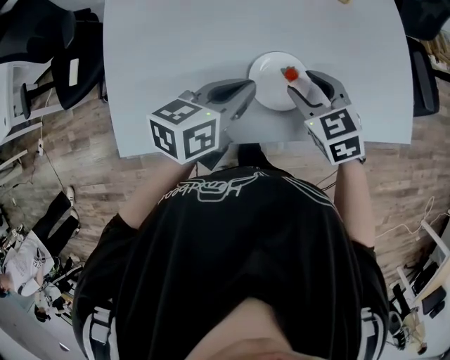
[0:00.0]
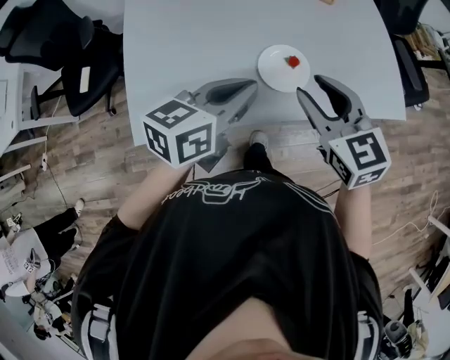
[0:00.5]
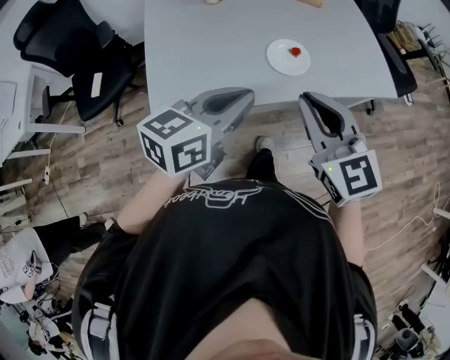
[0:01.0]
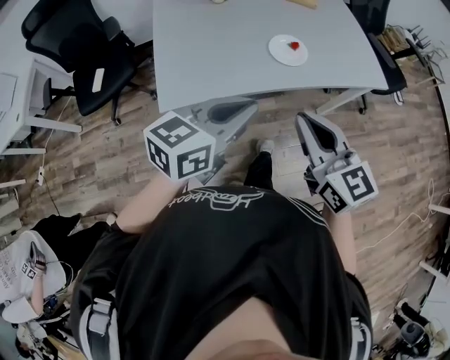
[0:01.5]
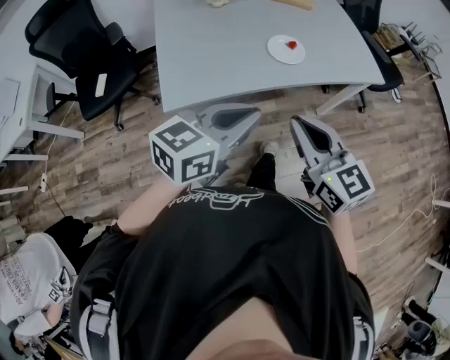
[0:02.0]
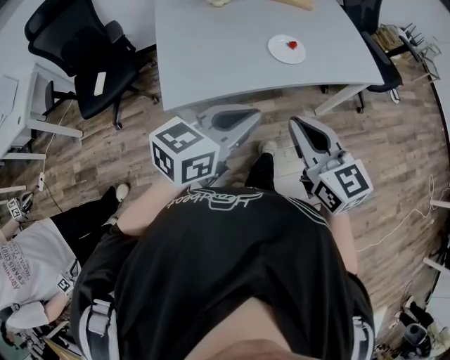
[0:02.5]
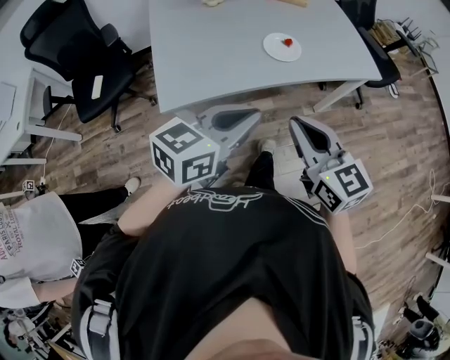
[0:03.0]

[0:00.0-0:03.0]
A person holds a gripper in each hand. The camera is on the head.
0:00.0 to 0:01.5: The two grippers go roughly 40 cm backward and upward. The left gripper rotates approximately 20 degrees; the right gripper points its fingers roughly 30 degrees further upward, and closes its fingers.
0:01.5 to 0:03.0: The grippers move only a little.

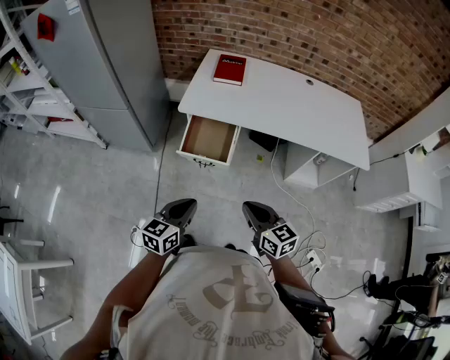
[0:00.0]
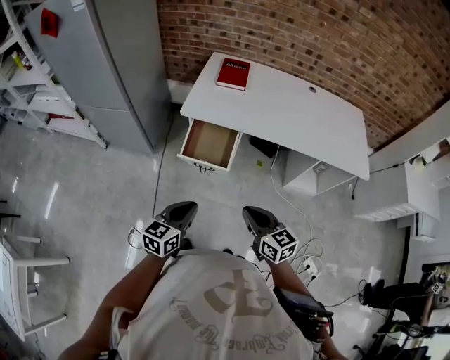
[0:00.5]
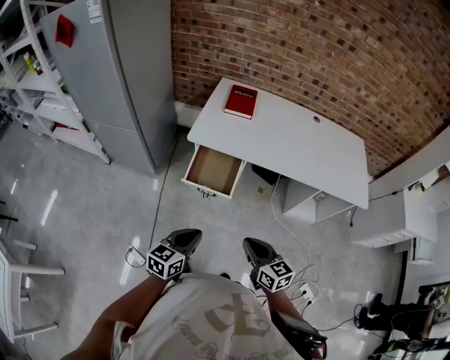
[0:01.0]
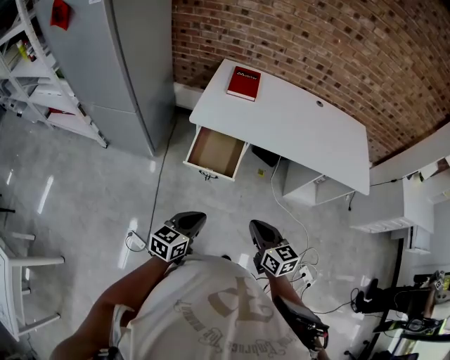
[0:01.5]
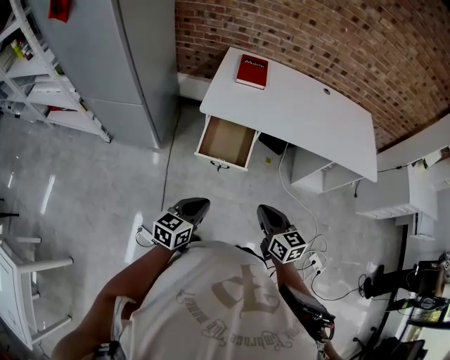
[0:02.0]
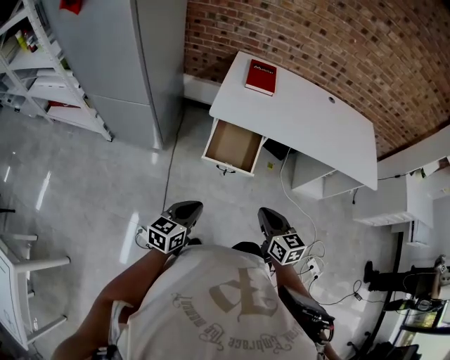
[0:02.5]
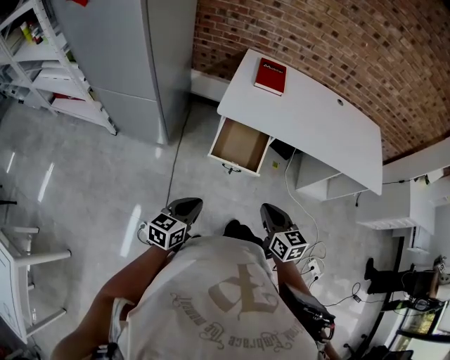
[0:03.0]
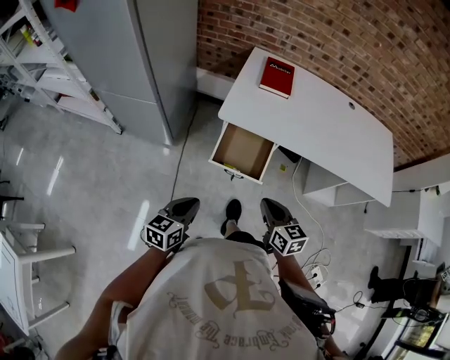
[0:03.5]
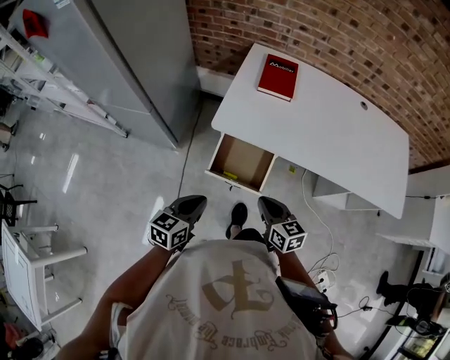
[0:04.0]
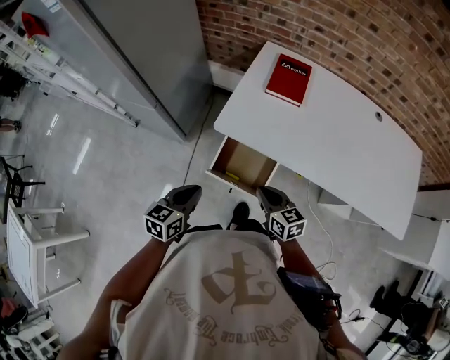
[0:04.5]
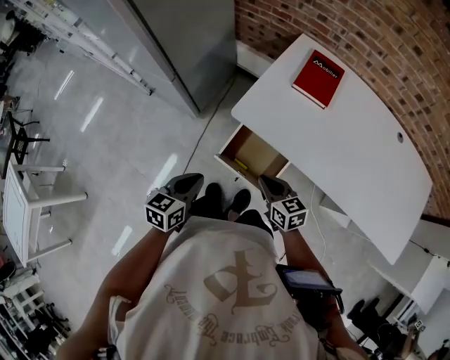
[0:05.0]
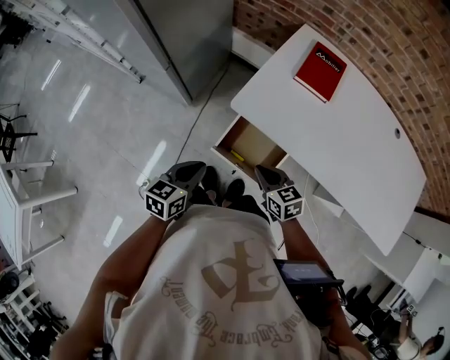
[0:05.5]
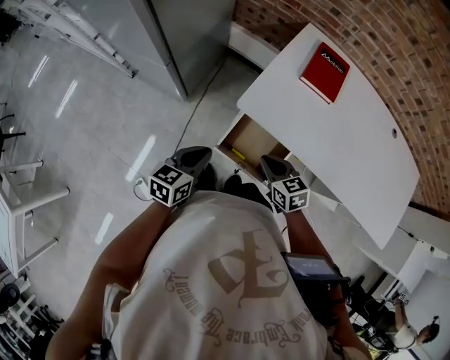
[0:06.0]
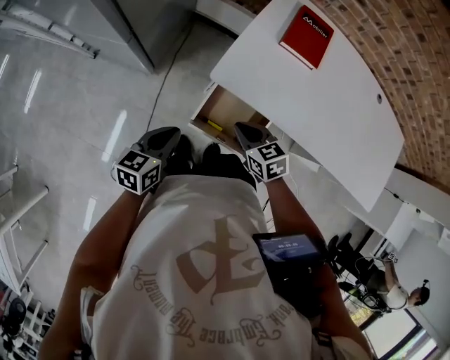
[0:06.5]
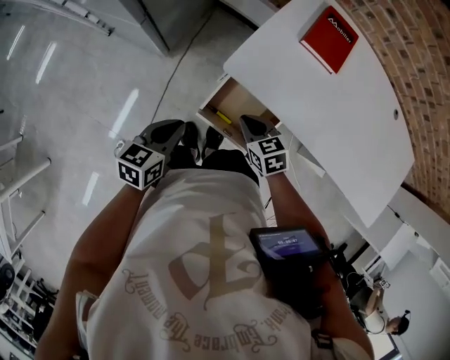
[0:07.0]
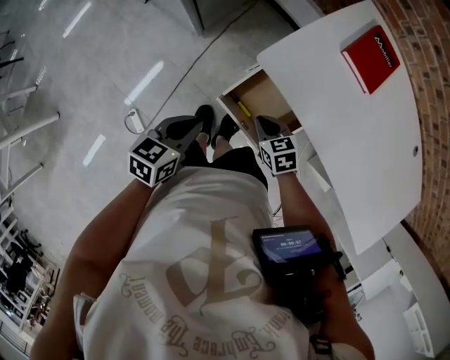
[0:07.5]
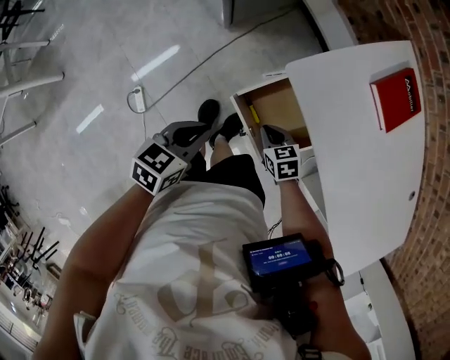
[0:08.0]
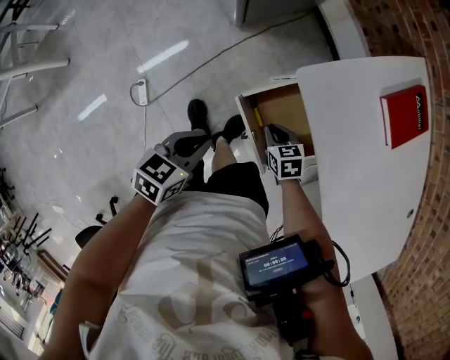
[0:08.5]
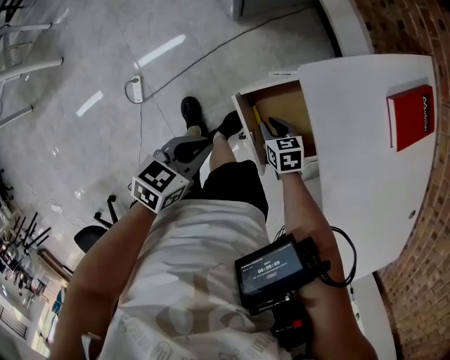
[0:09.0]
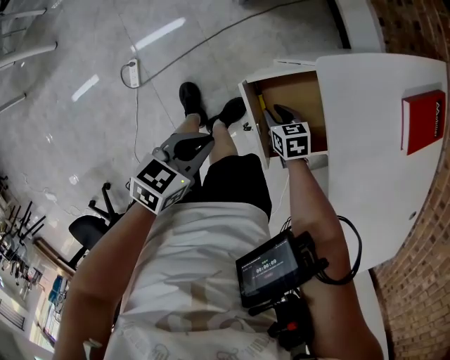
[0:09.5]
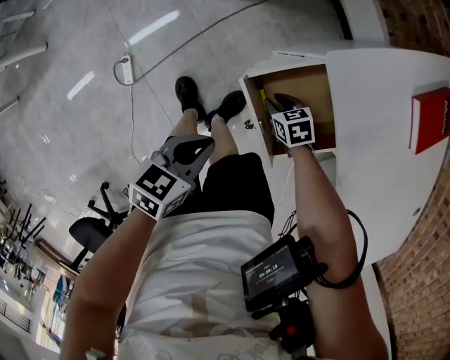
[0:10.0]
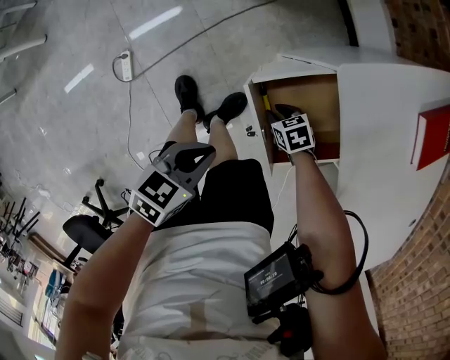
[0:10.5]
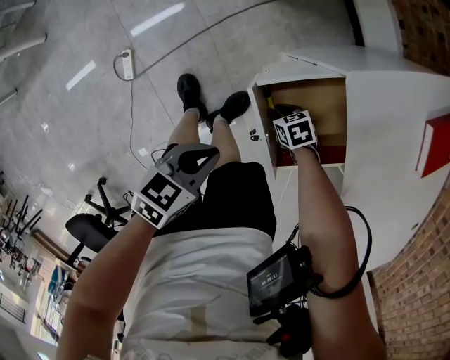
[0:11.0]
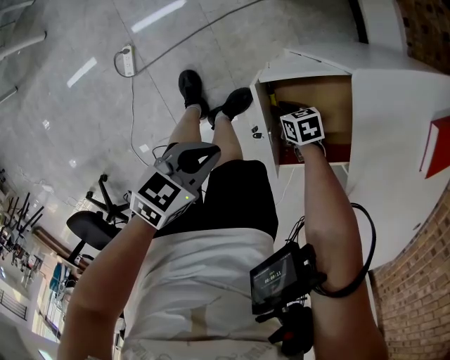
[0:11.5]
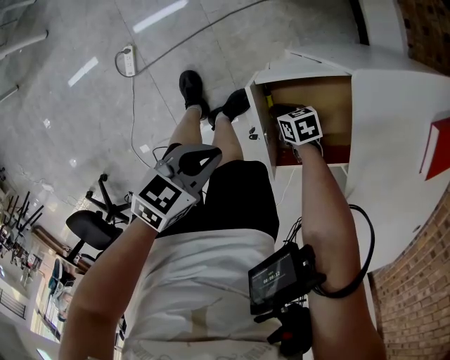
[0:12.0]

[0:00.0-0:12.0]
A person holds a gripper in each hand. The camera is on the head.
0:00.0 to 0:02.0: Both grippers travel together to the left, roughly 5 cm.
0:02.0 to 0:04.0: Both grippers travel together forward, approximately 20 cm.
0:04.0 to 0:06.0: The two grippers go some 15 cm forward. The right gripper changes its angle by approximately 30 degrees.
0:06.0 to 0:08.0: The right gripper is displaced downward by some 20 cm, and changes its angle by about 30 degrees. The left gripper heads downward and backward, covering about 10 cm.
0:08.0 to 0:10.0: The grippers both shift downward by about 10 cm. The right gripper opens up.
0:10.0 to 0:12.0: The right gripper shifts roughly 5 cm downward.

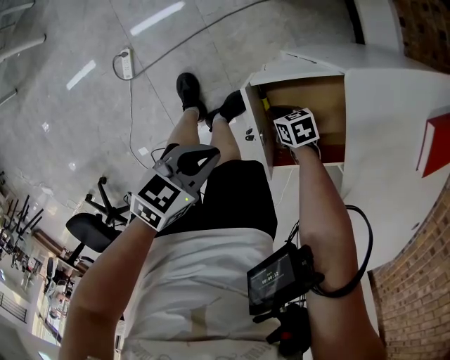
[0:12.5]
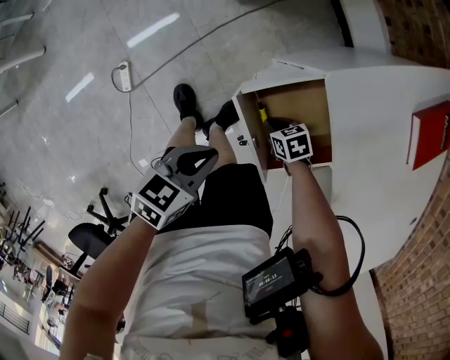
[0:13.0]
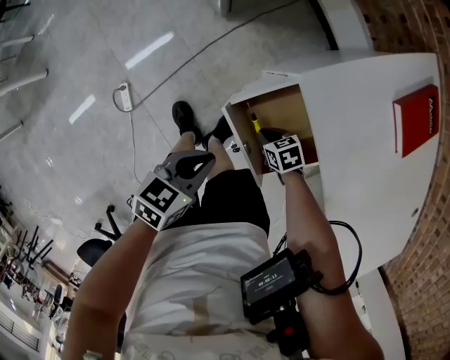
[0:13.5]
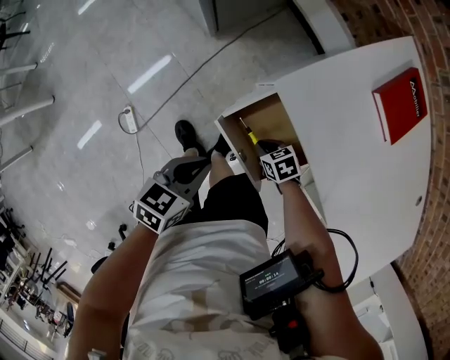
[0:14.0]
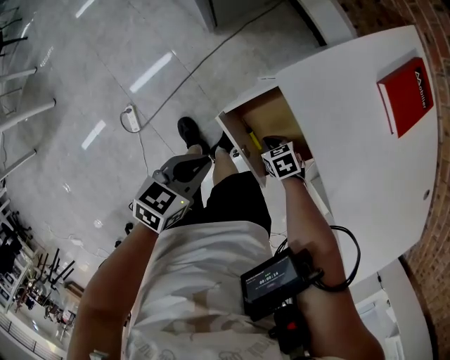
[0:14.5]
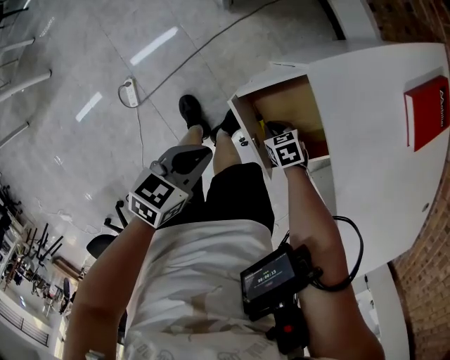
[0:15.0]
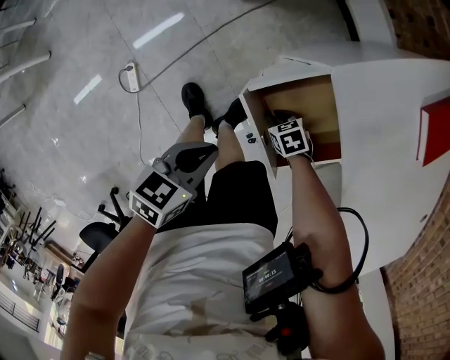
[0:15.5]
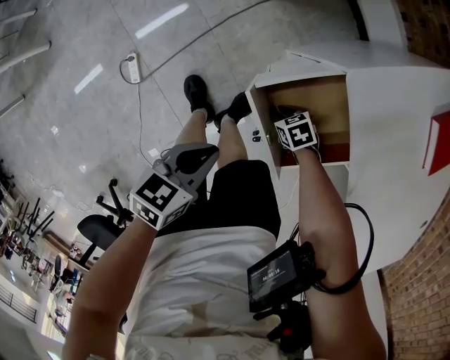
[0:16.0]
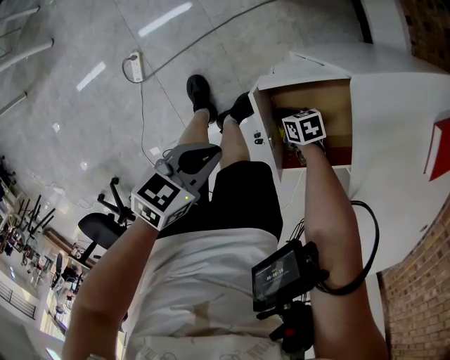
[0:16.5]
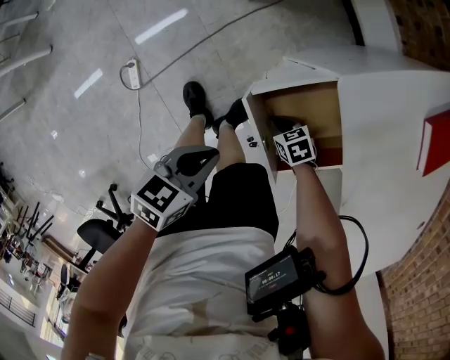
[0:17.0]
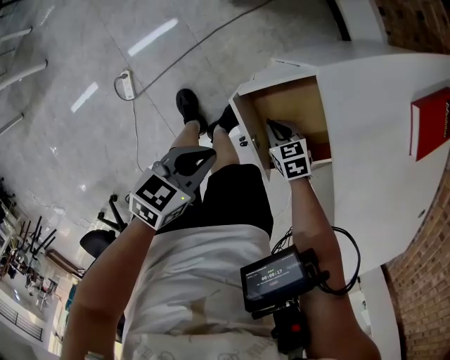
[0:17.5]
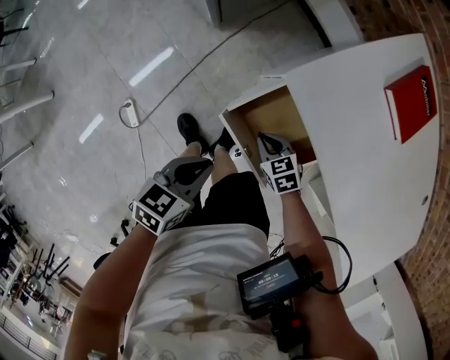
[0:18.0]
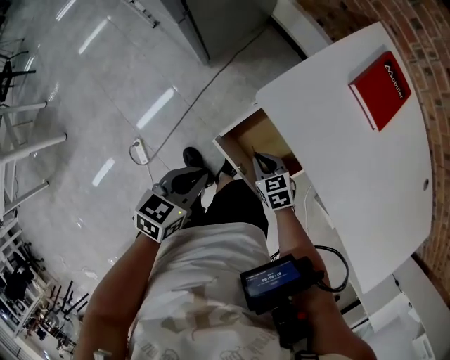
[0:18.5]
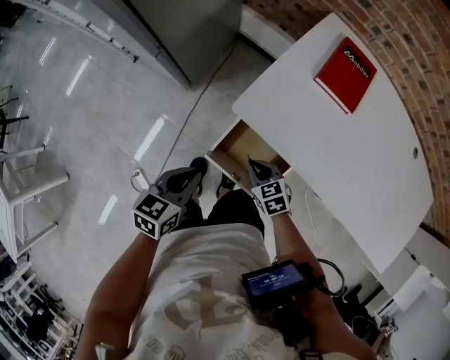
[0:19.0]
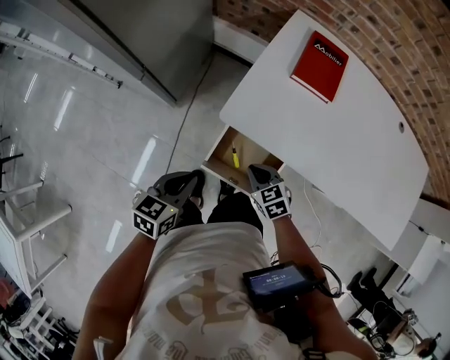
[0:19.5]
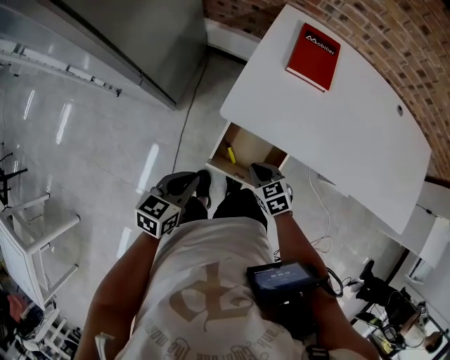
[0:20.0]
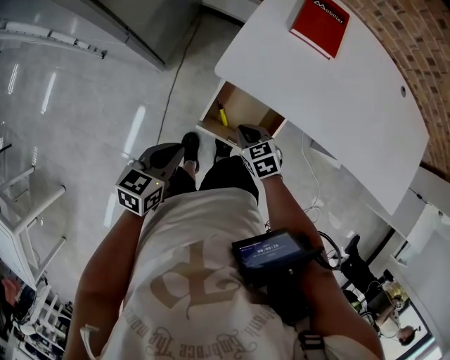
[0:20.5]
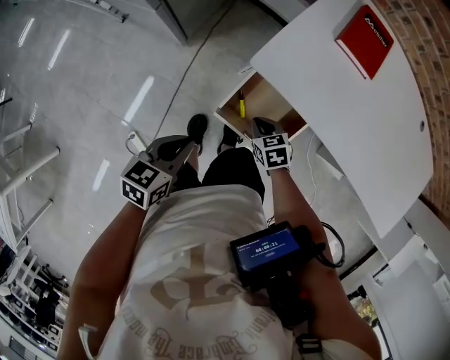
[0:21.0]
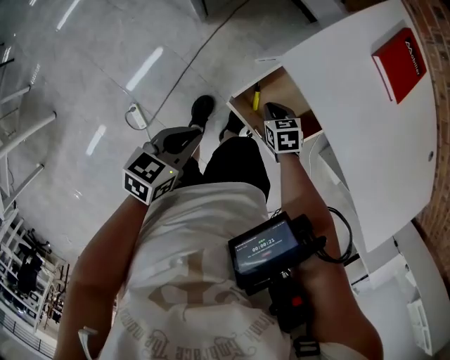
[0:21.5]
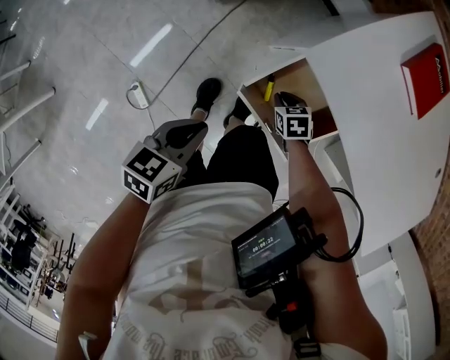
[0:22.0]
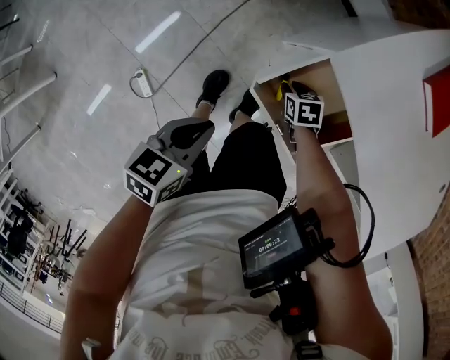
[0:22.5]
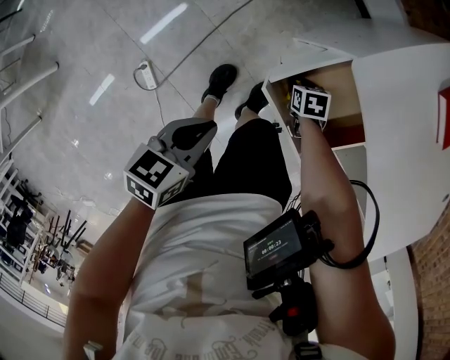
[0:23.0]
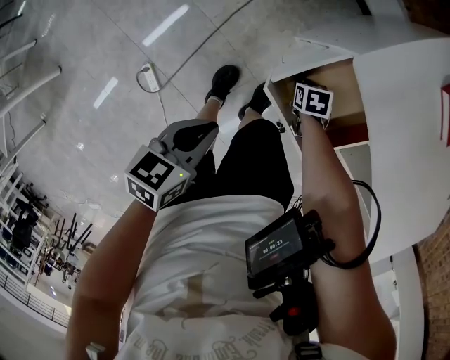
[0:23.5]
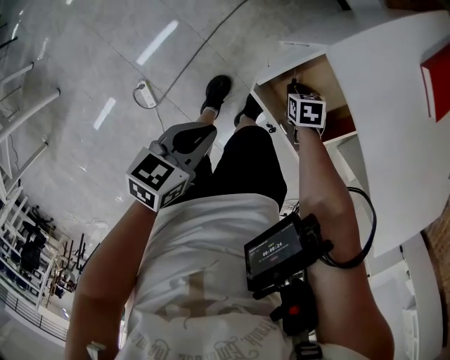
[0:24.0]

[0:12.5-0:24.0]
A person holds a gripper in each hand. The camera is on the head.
0:12.5 to 0:14.5: The grippers both shift upward by about 5 cm.
0:14.5 to 0:16.5: Both grippers move downward, some 10 cm.
0:16.5 to 0:18.5: The left gripper goes roughly 10 cm upward. The right gripper heads upward, covering some 20 cm, and changes its angle by approximately 40 degrees.
0:18.5 to 0:20.0: The left gripper heads upward, covering some 5 cm, and rotates some 20 degrees. The right gripper travels upward by roughly 10 cm, and swivels about 20 degrees.
0:20.0 to 0:22.0: The left gripper travels downward and to the left by some 10 cm, and rotates approximately 20 degrees. The right gripper shifts some 20 cm downward, and changes its angle by about 20 degrees.
